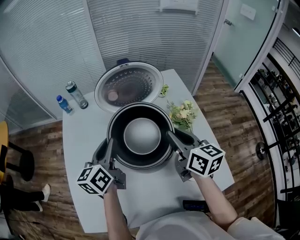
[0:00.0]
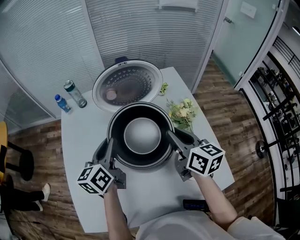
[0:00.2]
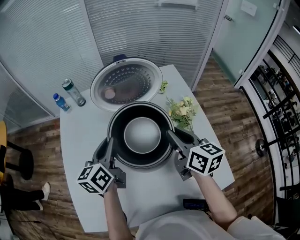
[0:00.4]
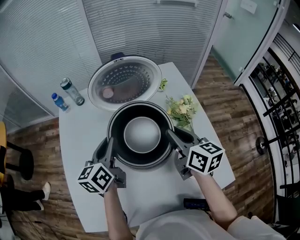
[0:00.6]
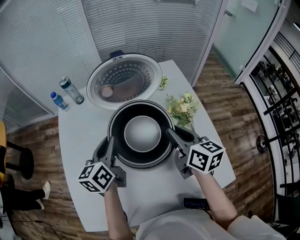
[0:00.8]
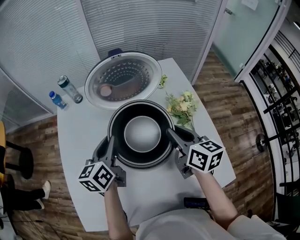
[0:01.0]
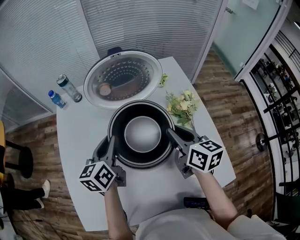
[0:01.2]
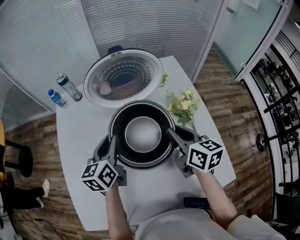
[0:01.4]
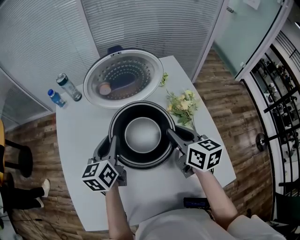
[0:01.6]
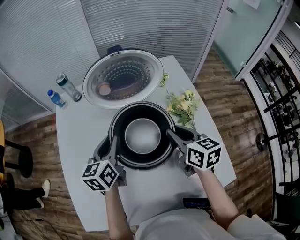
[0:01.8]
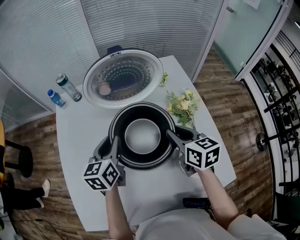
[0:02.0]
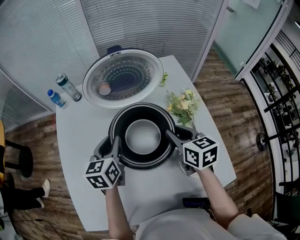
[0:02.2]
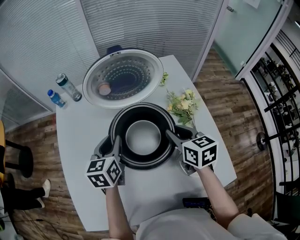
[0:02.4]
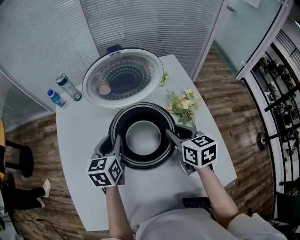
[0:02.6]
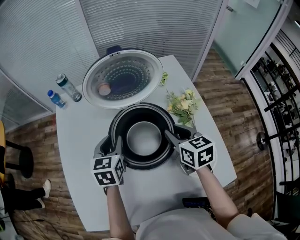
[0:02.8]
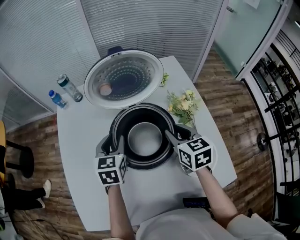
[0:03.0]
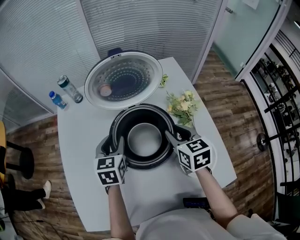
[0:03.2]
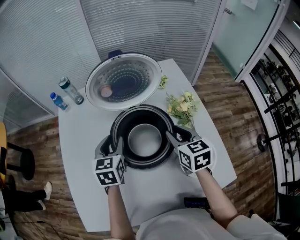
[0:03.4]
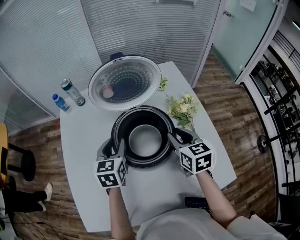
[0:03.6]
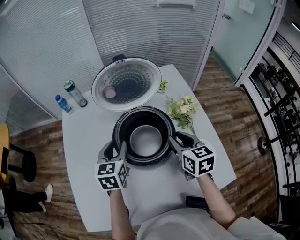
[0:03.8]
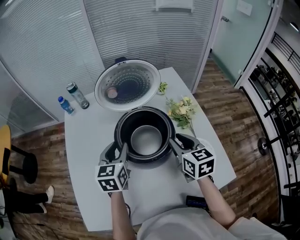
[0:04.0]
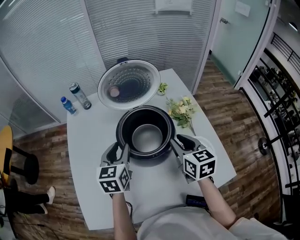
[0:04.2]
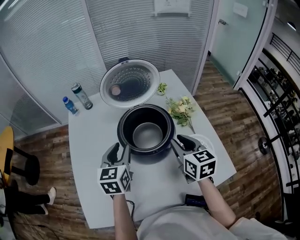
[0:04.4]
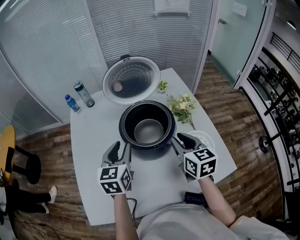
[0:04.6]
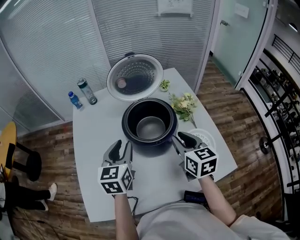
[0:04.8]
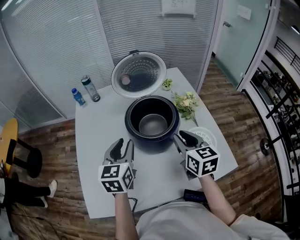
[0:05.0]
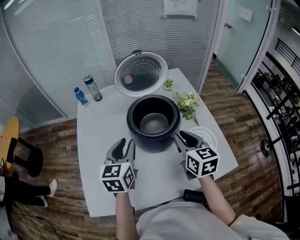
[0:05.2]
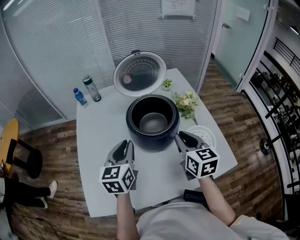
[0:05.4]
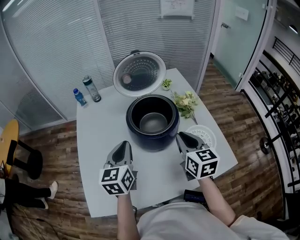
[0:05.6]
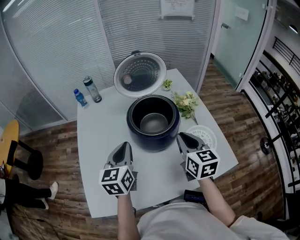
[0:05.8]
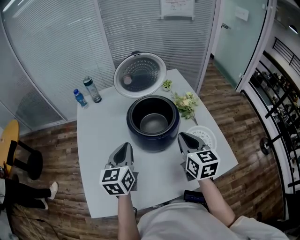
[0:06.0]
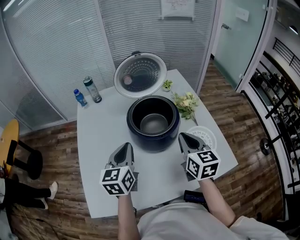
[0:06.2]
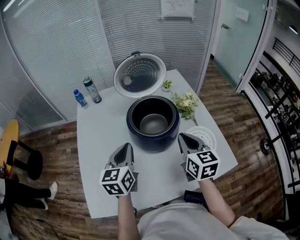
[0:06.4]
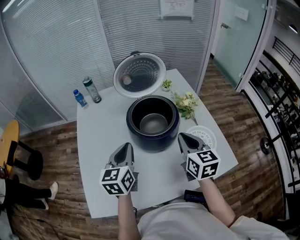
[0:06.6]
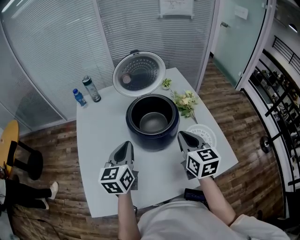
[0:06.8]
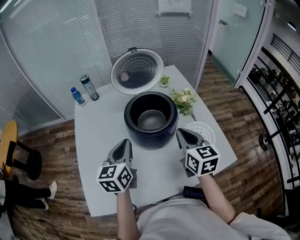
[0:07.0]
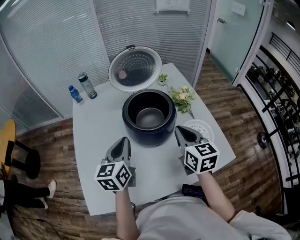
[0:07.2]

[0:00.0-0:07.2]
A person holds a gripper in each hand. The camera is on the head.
0:00.0 to 0:01.4: The two grippers go approximately 5 cm downward.
0:01.4 to 0:02.8: The left gripper changes its angle by approximately 20 degrees.
0:02.8 to 0:04.4: Both grippers move backward and upward, some 10 cm.
0:04.4 to 0:05.8: The two grippers go roughly 10 cm backward. The left gripper closes.
0:05.8 to 0:07.2: The grippers move only a little.

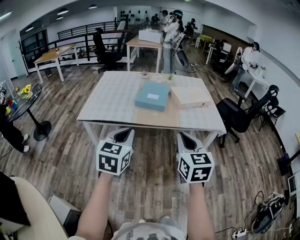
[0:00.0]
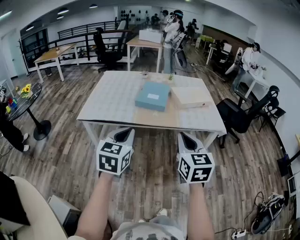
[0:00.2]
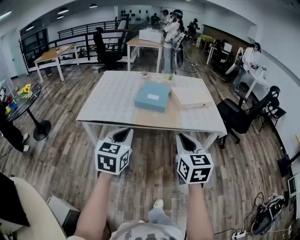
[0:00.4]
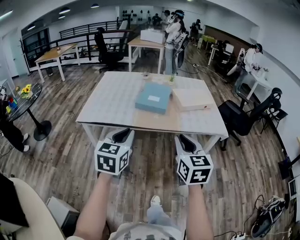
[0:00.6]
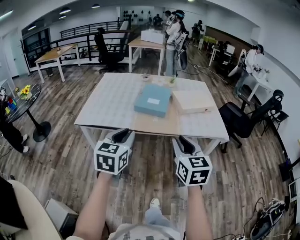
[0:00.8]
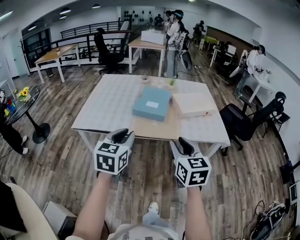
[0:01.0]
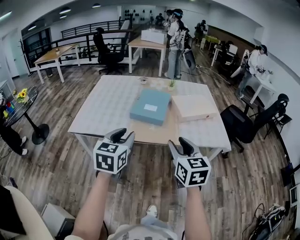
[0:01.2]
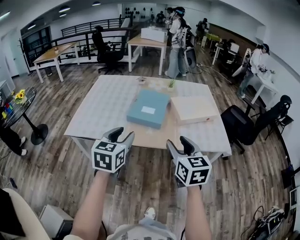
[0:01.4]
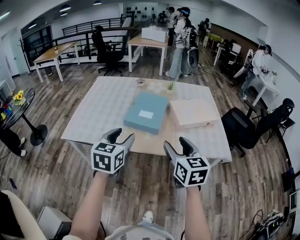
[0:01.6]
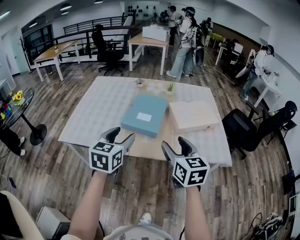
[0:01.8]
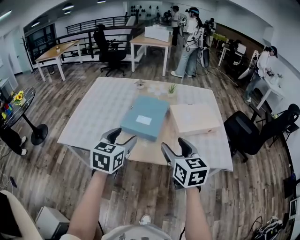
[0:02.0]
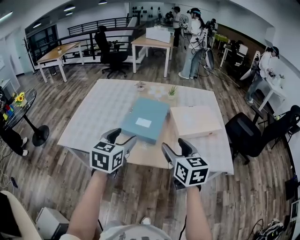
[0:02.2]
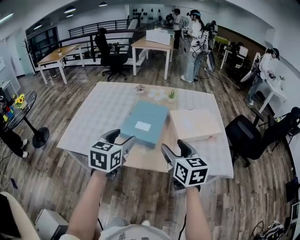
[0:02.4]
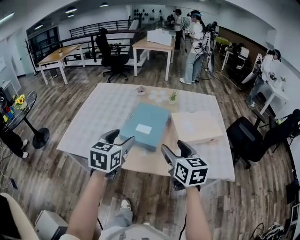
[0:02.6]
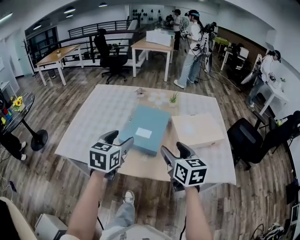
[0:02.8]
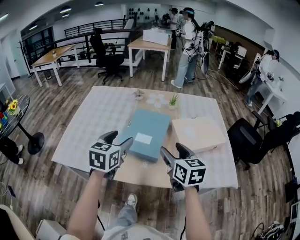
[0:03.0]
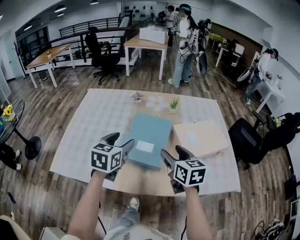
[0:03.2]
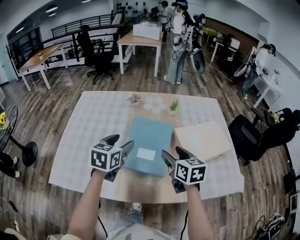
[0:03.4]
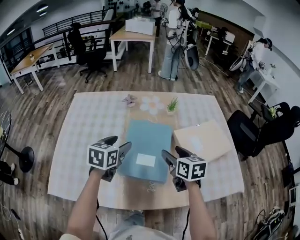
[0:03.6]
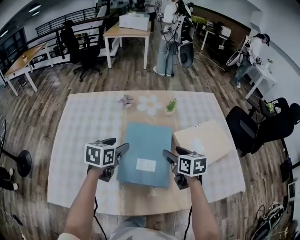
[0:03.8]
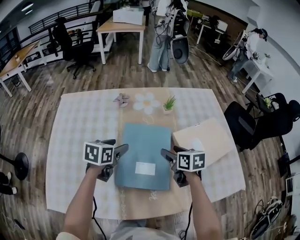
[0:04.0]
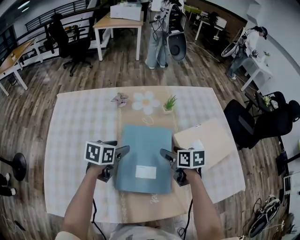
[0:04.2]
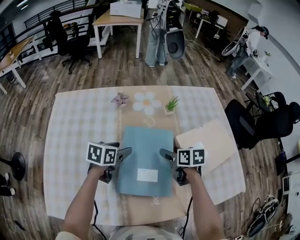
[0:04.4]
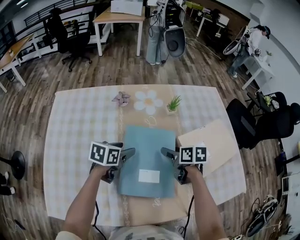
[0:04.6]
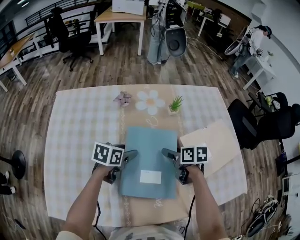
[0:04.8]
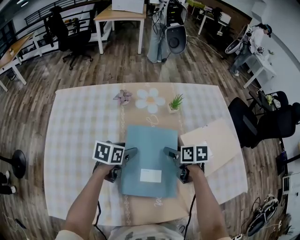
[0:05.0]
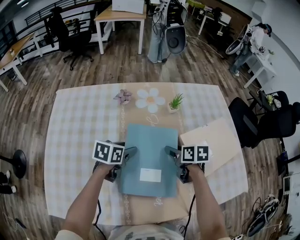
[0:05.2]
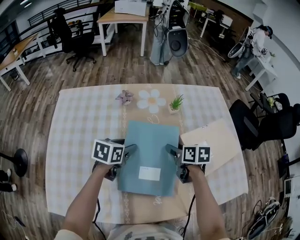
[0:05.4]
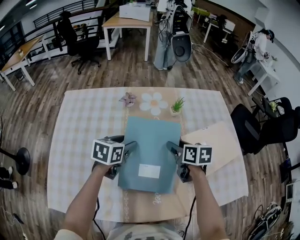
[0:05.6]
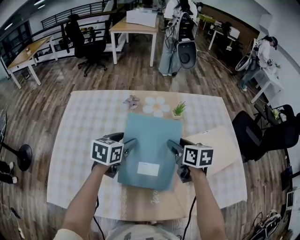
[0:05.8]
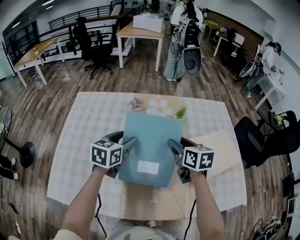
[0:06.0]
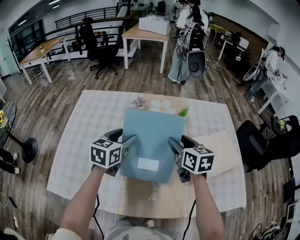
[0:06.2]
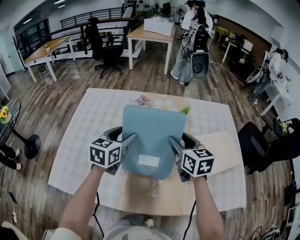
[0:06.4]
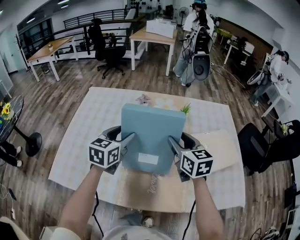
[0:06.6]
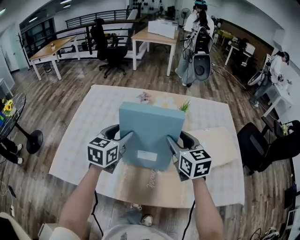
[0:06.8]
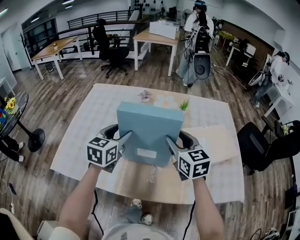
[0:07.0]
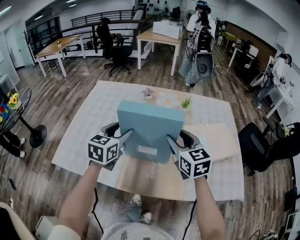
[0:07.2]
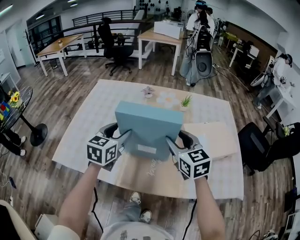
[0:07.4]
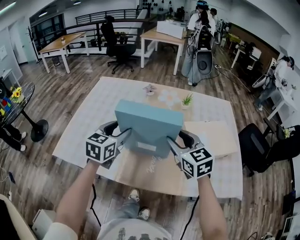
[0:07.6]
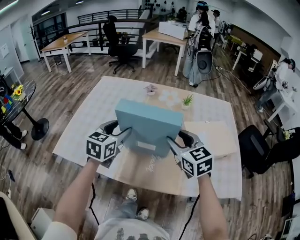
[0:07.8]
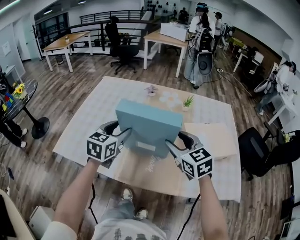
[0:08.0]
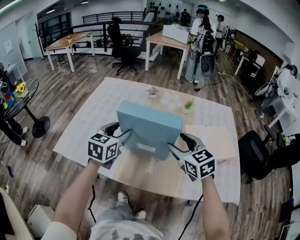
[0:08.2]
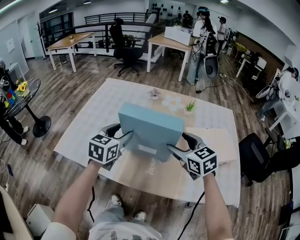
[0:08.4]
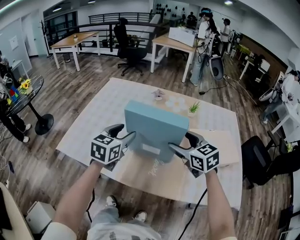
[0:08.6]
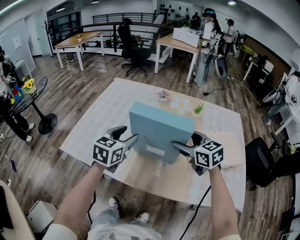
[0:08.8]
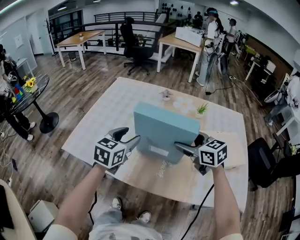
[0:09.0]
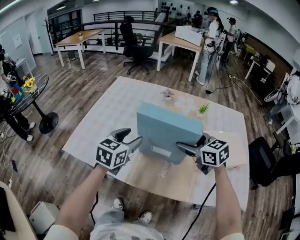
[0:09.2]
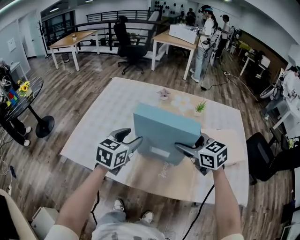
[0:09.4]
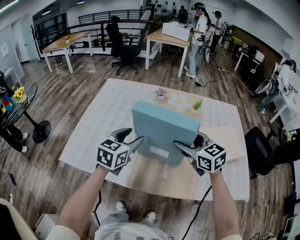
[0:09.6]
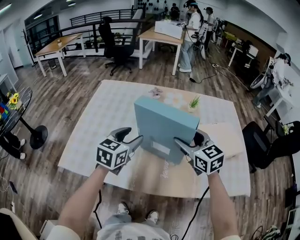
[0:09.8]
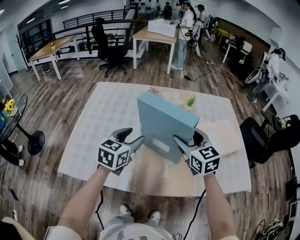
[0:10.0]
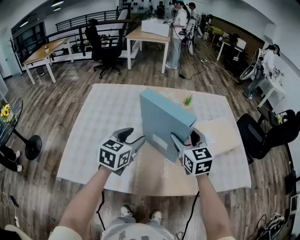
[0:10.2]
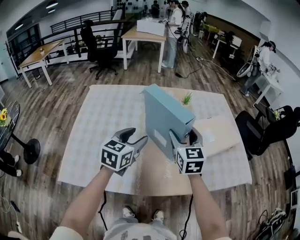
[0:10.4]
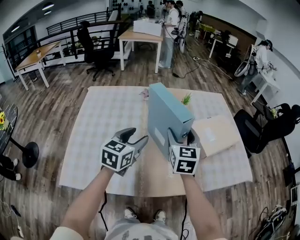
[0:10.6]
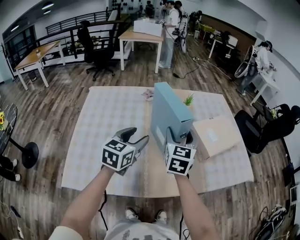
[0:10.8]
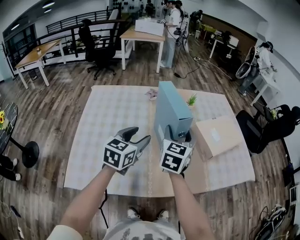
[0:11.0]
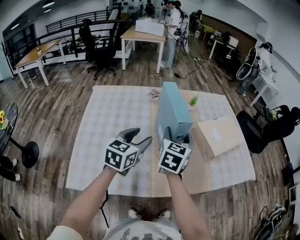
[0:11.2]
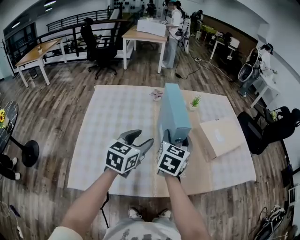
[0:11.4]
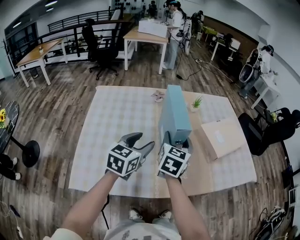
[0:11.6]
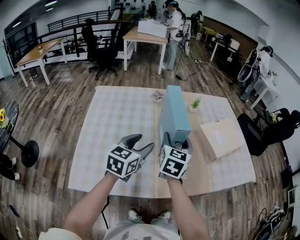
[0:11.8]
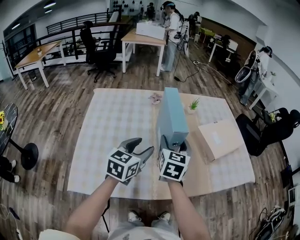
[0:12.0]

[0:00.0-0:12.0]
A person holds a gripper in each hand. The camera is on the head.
0:00.0 to 0:01.6: The two grippers go about 25 cm forward. The right gripper opens its fingers; the left gripper opens up.
0:01.6 to 0:03.0: The grippers both shift forward by roughly 20 cm.
0:03.0 to 0:04.4: The two grippers go about 30 cm forward and downward. The right gripper changes its angle by about 40 degrees. Meanwhile the left gripper changes its angle by about 40 degrees.
0:04.4 to 0:06.0: Both grippers travel together upward, about 10 cm. The left gripper swivels roughly 20 degrees, while the right gripper turns by approximately 20 degrees.
0:06.0 to 0:07.6: The grippers both shift backward by approximately 15 cm. The right gripper rotates roughly 30 degrees.
0:07.6 to 0:09.0: The right gripper turns by roughly 20 degrees, and opens its fingers.
0:09.0 to 0:10.4: The right gripper rotates approximately 50 degrees. Meanwhile the left gripper ends up approximately 5 cm from where it was.
0:10.4 to 0:12.0: The right gripper shifts some 10 cm to the left, and changes its angle by about 20 degrees. The left gripper shifts by approximately 5 cm.

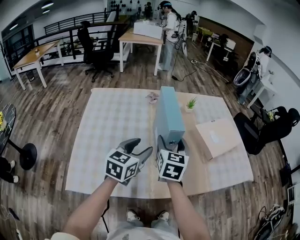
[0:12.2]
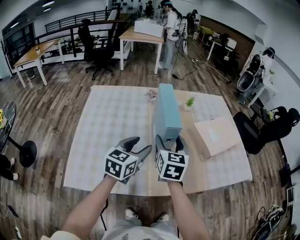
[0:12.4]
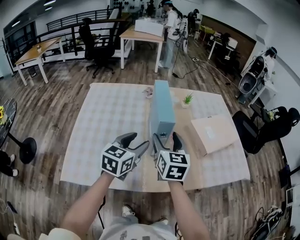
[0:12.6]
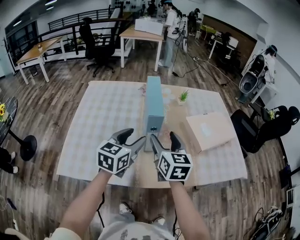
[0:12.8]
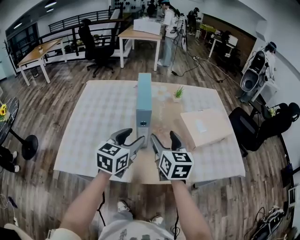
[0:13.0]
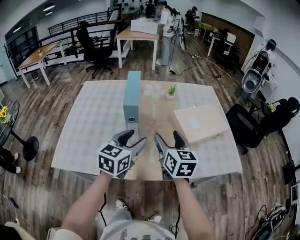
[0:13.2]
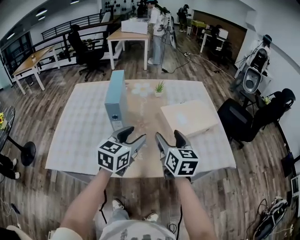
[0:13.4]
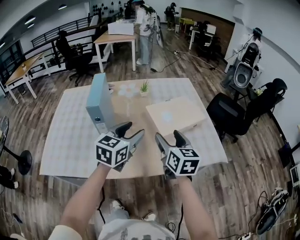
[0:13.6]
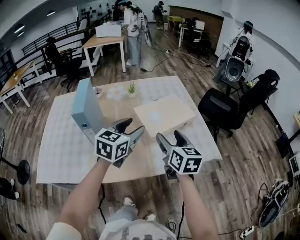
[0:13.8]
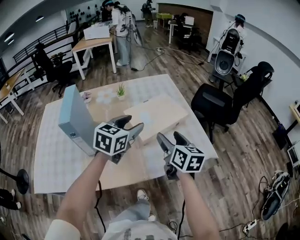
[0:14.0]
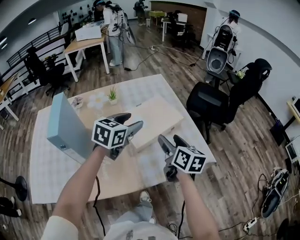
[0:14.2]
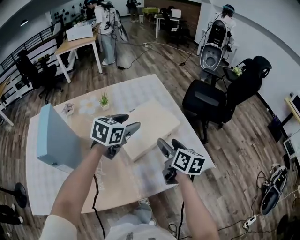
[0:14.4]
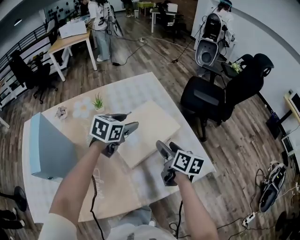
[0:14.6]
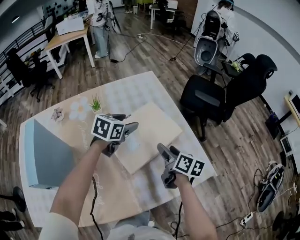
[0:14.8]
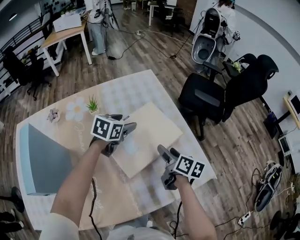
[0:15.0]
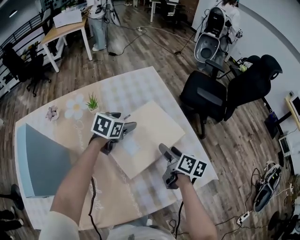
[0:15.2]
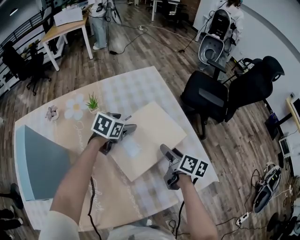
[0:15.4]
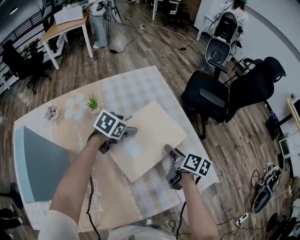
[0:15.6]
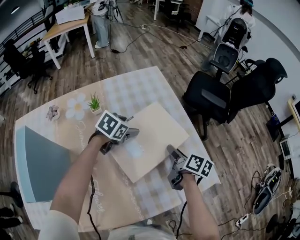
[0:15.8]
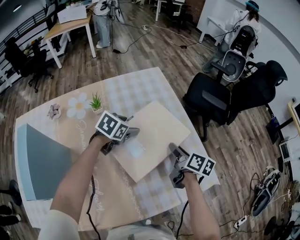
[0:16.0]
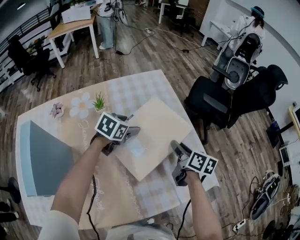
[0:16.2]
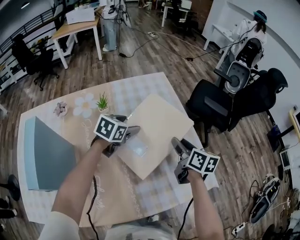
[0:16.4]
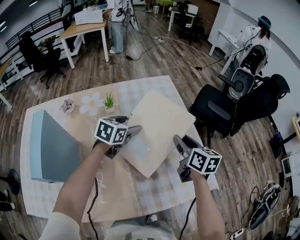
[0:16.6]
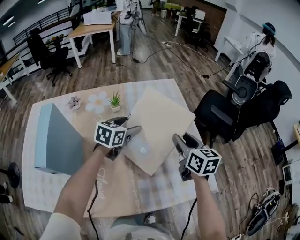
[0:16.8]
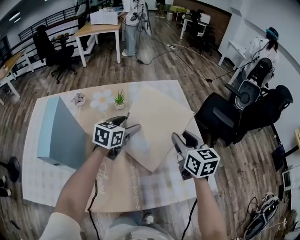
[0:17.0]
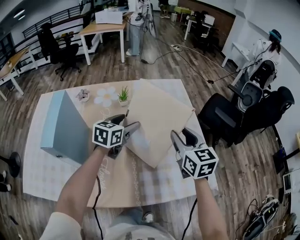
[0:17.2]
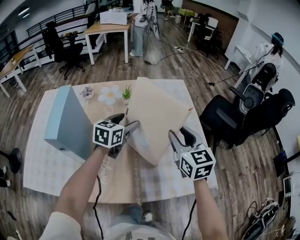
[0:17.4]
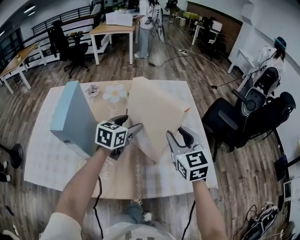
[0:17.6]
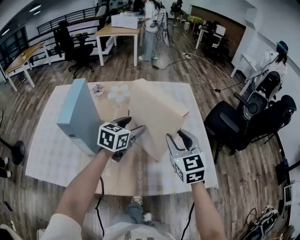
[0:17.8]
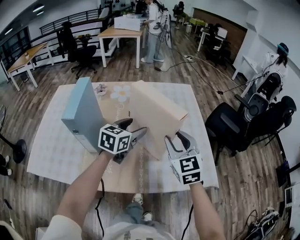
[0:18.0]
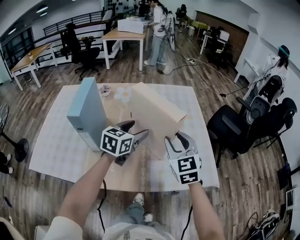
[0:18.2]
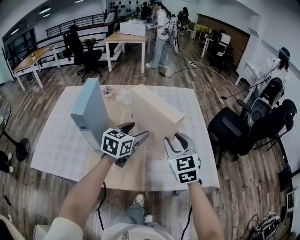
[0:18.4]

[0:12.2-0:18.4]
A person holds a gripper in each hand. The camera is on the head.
0:12.2 to 0:13.8: Both grippers travel together to the right, roughly 35 cm.
0:13.8 to 0:15.4: Both grippers move forward and downward, roughly 30 cm. The right gripper rotates approximately 40 degrees. Meanwhile the left gripper rotates approximately 30 degrees.
0:15.4 to 0:16.8: The left gripper travels upward and backward by about 10 cm; the right gripper moves upward, roughly 15 cm, rotates approximately 40 degrees, and closes up.
0:16.8 to 0:18.4: The right gripper is displaced backward and to the left by approximately 15 cm, and rotates about 40 degrees; the left gripper goes roughly 20 cm backward and upward.
